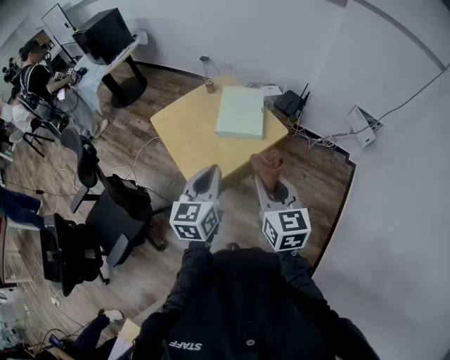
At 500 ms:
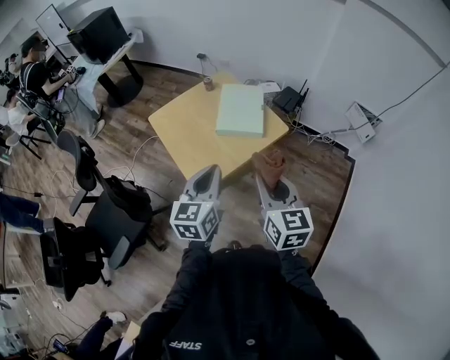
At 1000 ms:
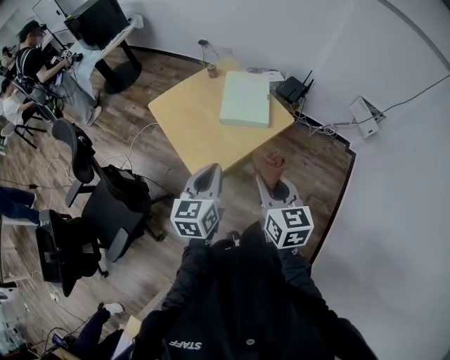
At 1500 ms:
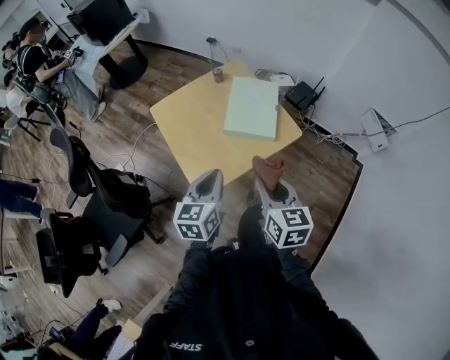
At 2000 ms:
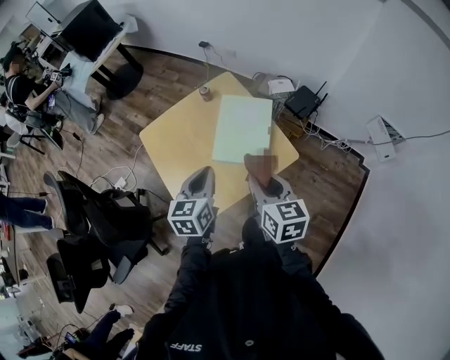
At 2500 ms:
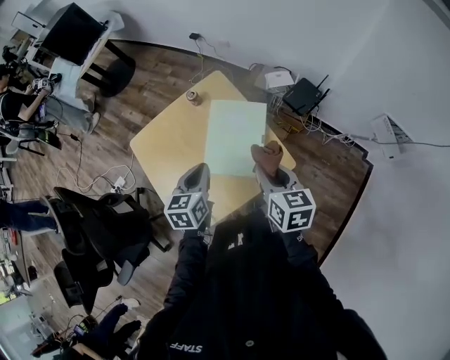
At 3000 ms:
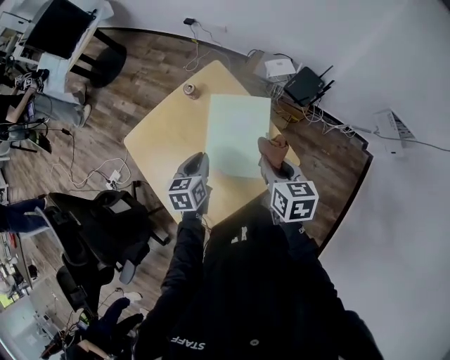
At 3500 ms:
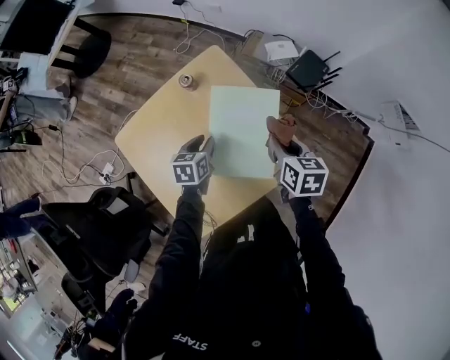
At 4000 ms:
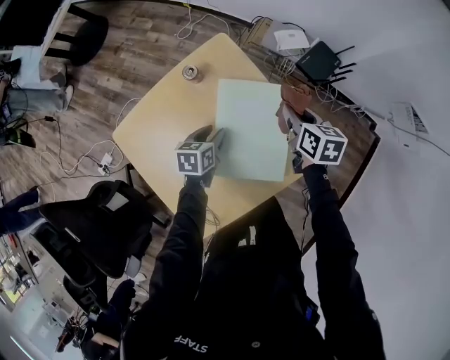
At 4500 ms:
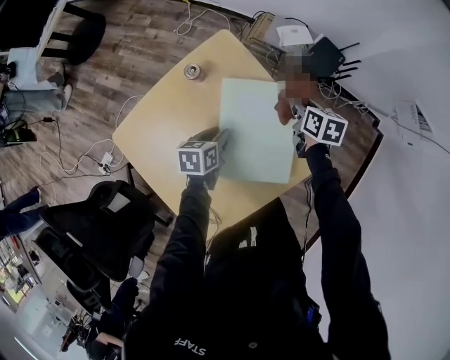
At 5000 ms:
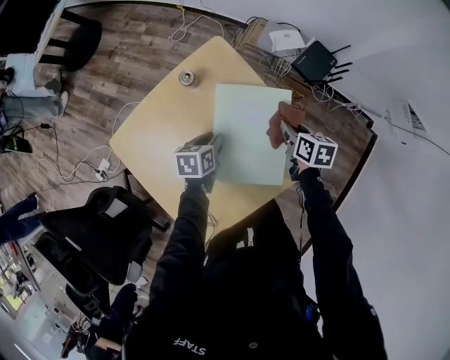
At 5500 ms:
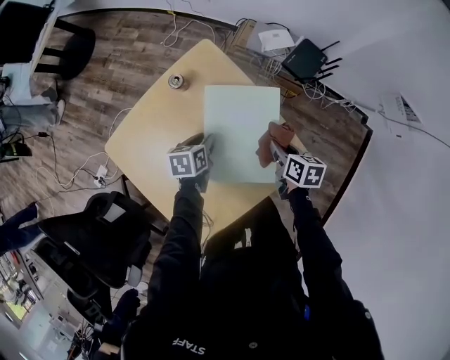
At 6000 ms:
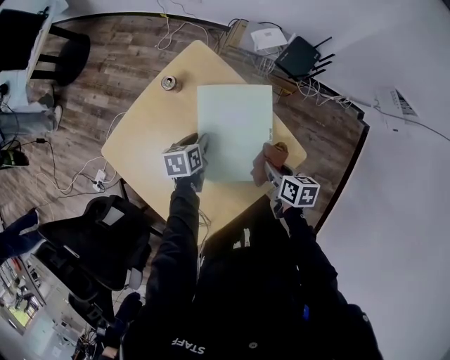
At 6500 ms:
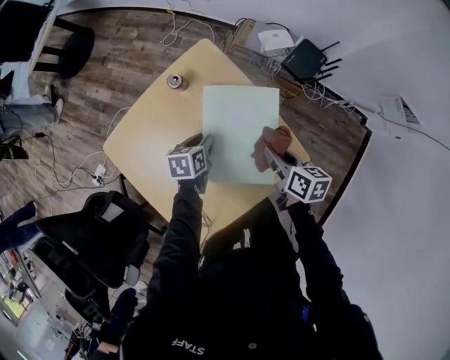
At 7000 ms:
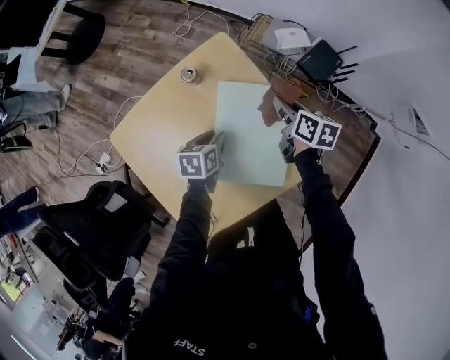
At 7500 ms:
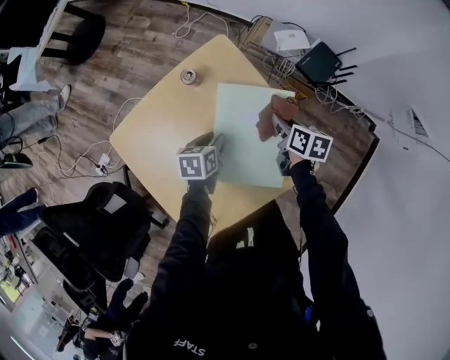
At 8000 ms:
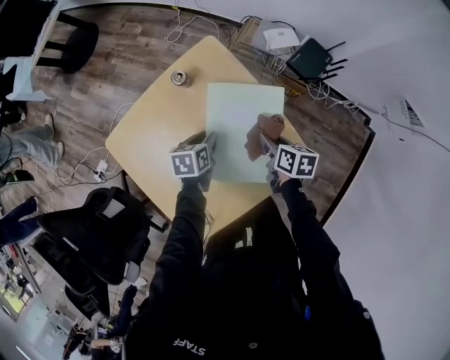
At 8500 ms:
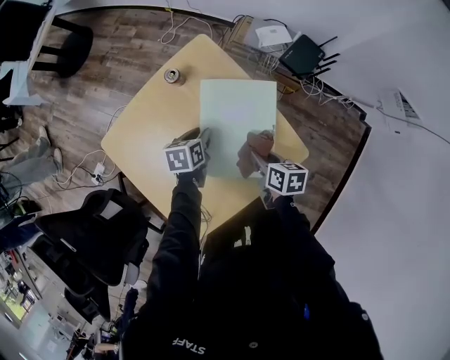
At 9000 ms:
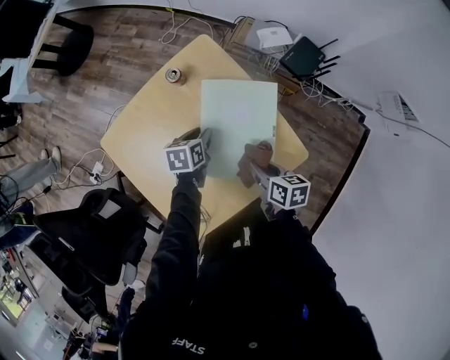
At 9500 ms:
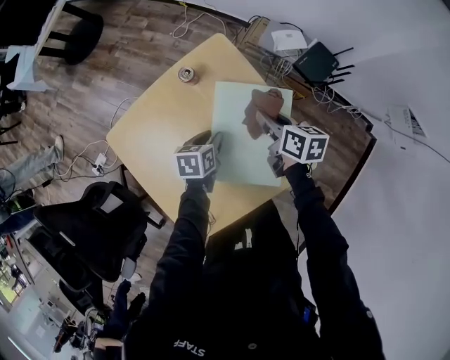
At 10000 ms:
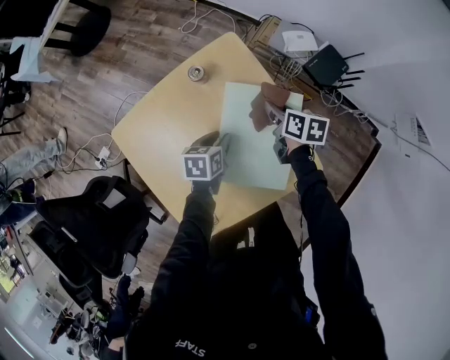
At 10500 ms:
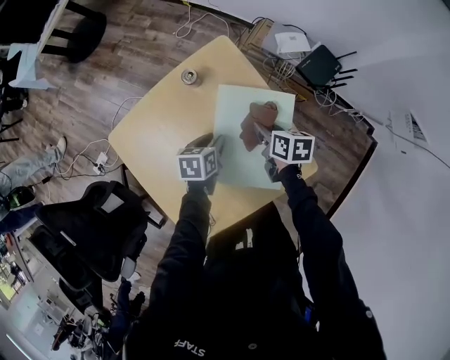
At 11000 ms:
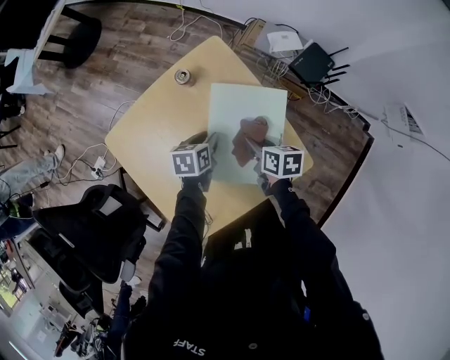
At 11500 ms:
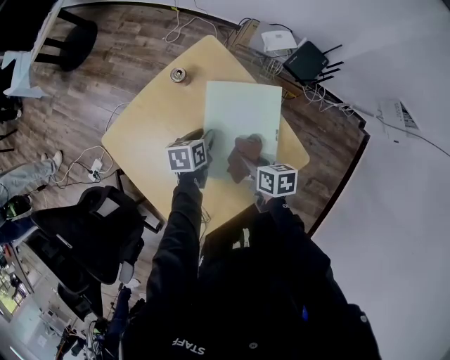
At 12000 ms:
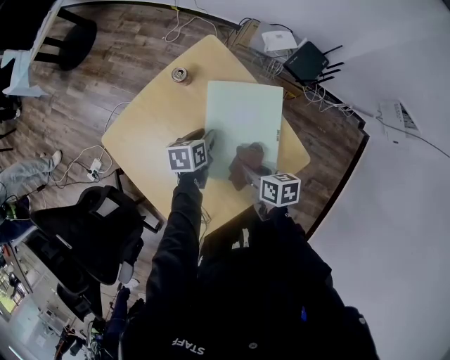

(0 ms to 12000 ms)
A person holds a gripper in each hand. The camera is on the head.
0 ms - 2000 ms: The right gripper goes approximately 25 cm forward; the left gripper heads forward and downward, covering some 30 cm.
2000 ms - 4000 ms: The right gripper goes about 40 cm forward and downward, and turns by roughly 20 degrees. The left gripper moves downward and forward, some 40 cm, turns by approximately 30 degrees, and opens its fingers.
4000 ms - 6000 ms: The right gripper moves backward and downward, roughly 20 cm.
6000 ms - 8000 ms: The right gripper shifts roughly 10 cm forward.
8000 ms - 10000 ms: The right gripper is displaced forward by roughly 10 cm.
10000 ms - 12000 ms: The right gripper shifts about 20 cm backward.

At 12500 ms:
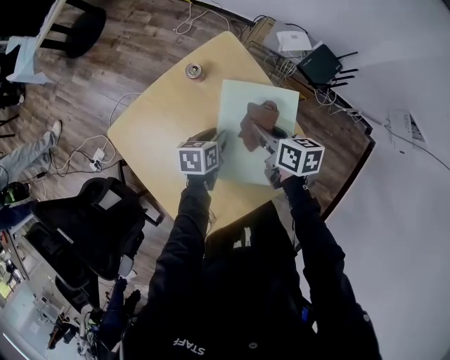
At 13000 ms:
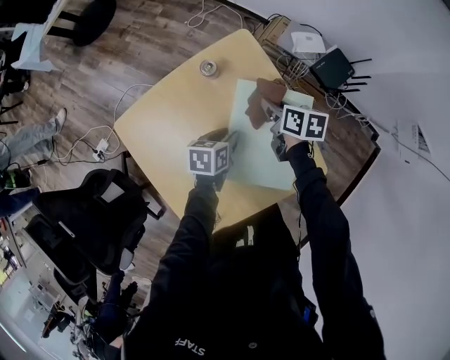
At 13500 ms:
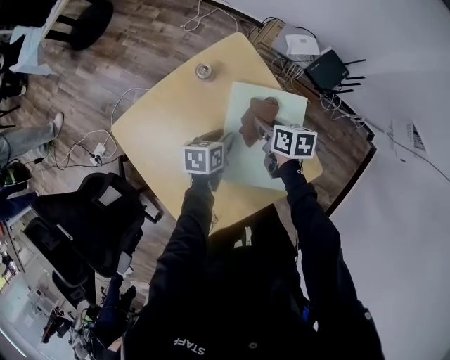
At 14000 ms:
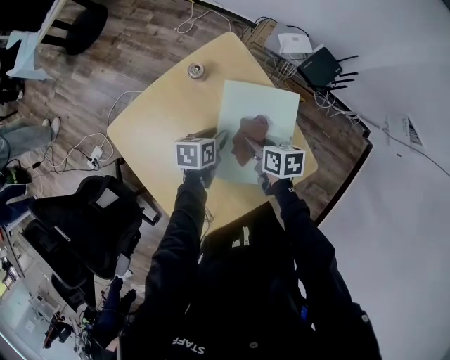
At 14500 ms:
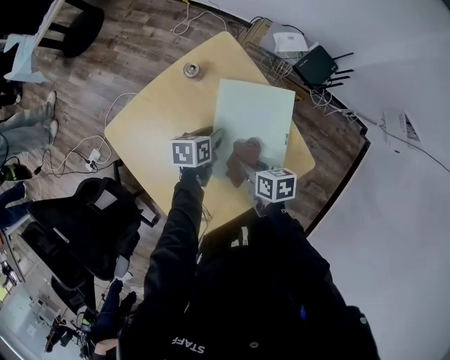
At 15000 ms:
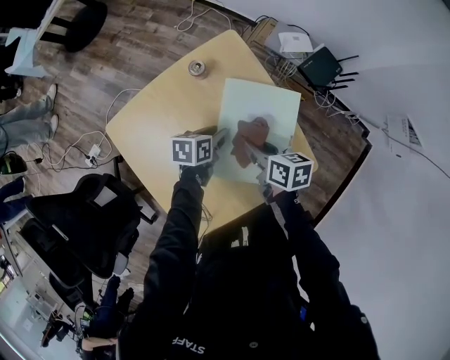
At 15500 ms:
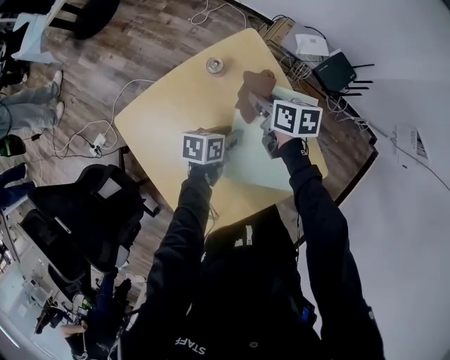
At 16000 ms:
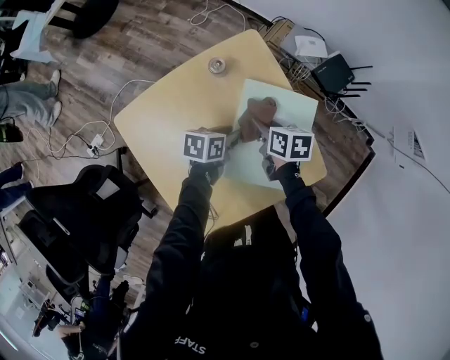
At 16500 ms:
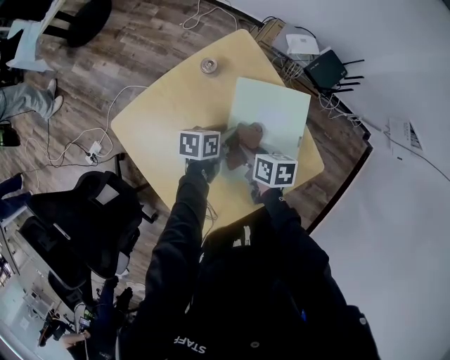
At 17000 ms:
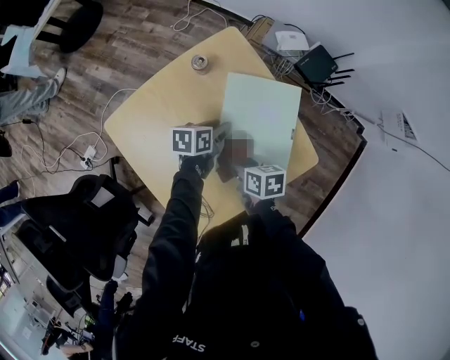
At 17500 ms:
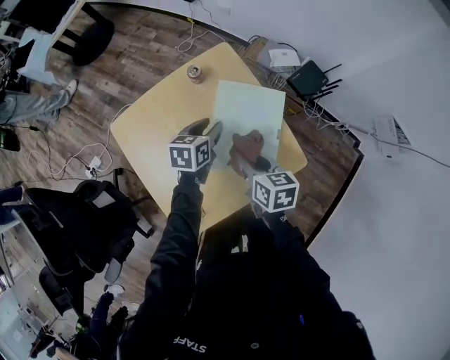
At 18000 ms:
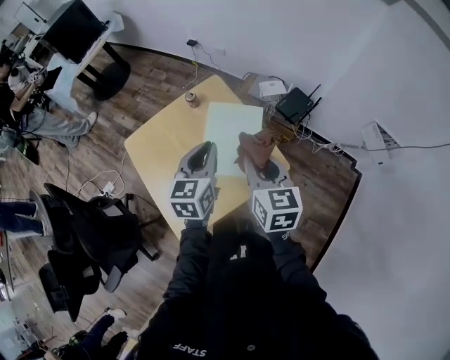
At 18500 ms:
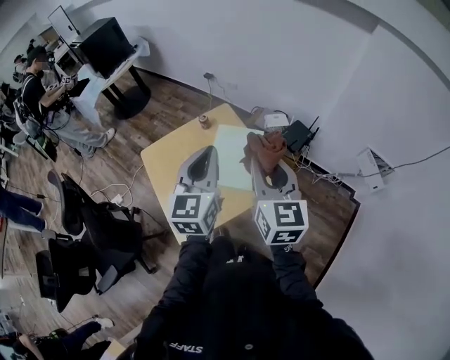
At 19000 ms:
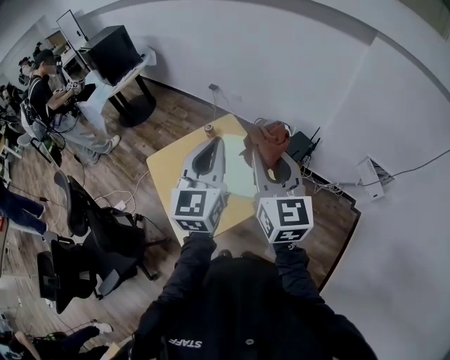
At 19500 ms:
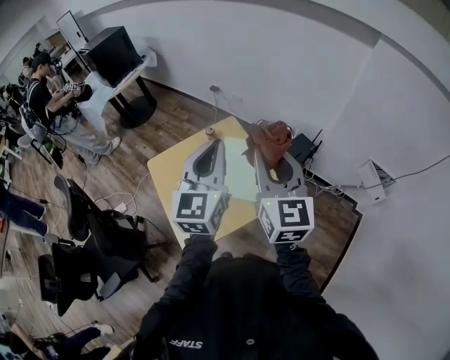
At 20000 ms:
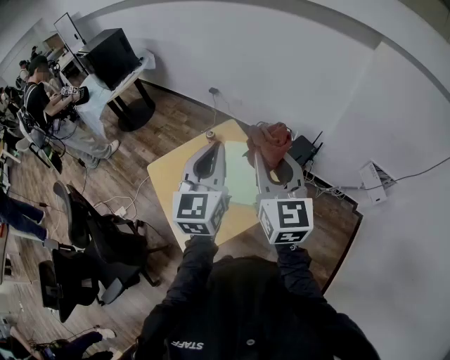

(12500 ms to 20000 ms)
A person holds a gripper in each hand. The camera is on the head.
12500 ms - 14500 ms: The right gripper is displaced backward and downward by some 15 cm.
14500 ms - 16500 ms: The right gripper travels to the left by some 5 cm, and travels forward and back again, roughly 20 cm each way.
16500 ms - 18000 ms: The right gripper heads upward and to the right, covering about 35 cm, and rotates approximately 50 degrees. Meanwhile the left gripper heads upward and backward, covering approximately 35 cm, rotates about 50 degrees, and closes.
18000 ms - 20000 ms: Both grippers travel together upward, about 20 cm. The left gripper turns by some 30 degrees. The right gripper rotates some 30 degrees.

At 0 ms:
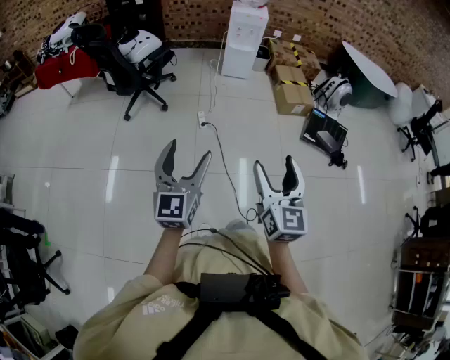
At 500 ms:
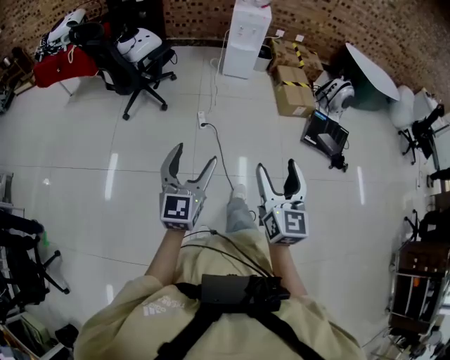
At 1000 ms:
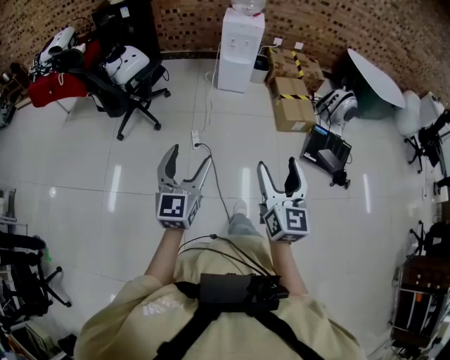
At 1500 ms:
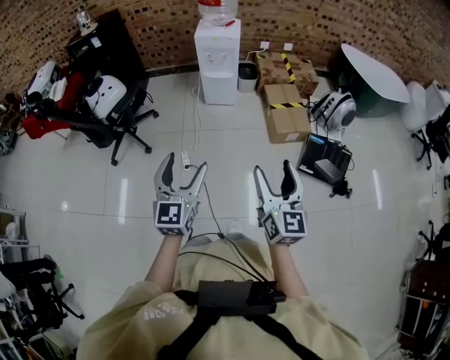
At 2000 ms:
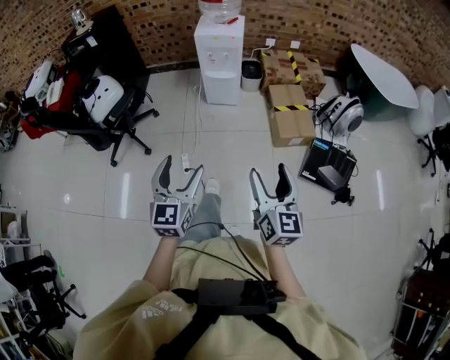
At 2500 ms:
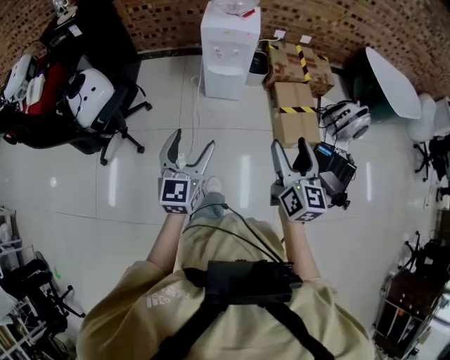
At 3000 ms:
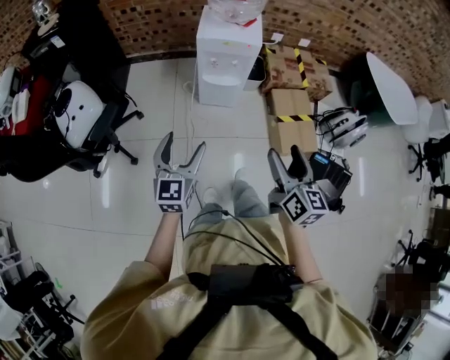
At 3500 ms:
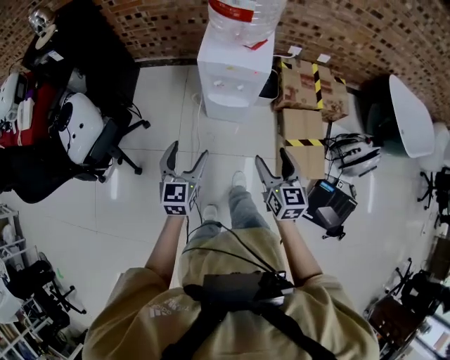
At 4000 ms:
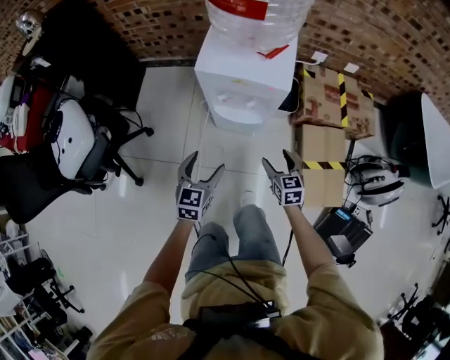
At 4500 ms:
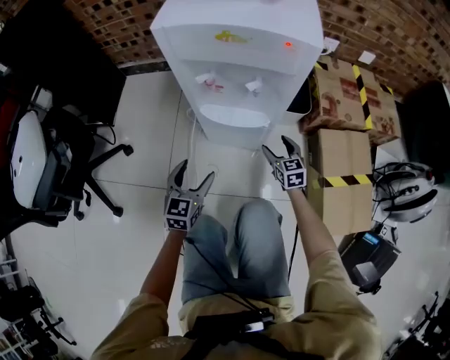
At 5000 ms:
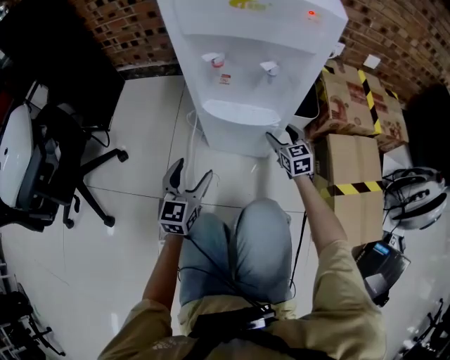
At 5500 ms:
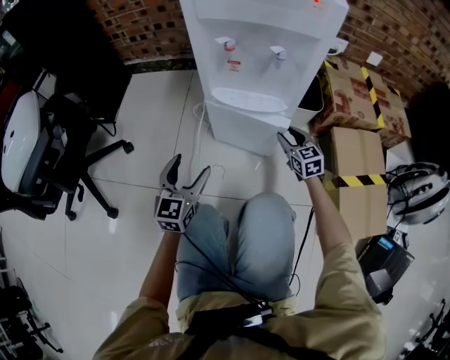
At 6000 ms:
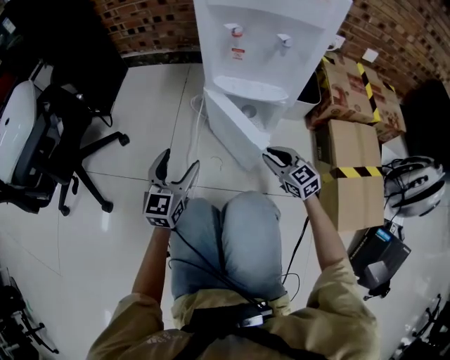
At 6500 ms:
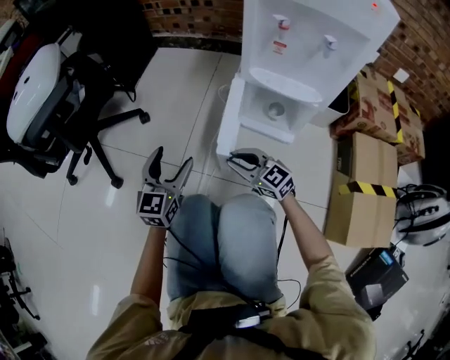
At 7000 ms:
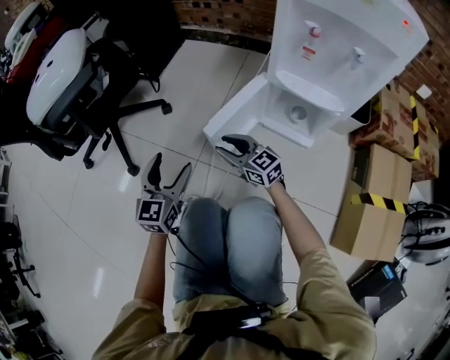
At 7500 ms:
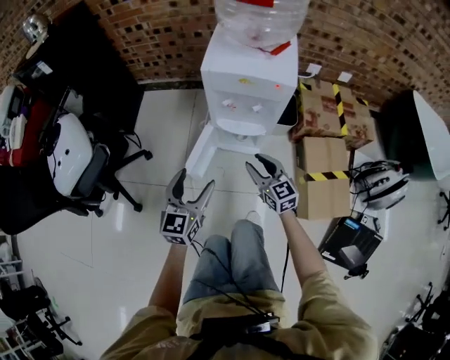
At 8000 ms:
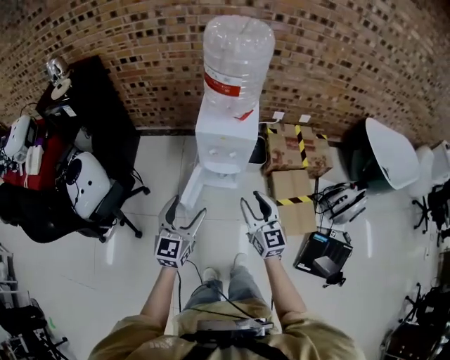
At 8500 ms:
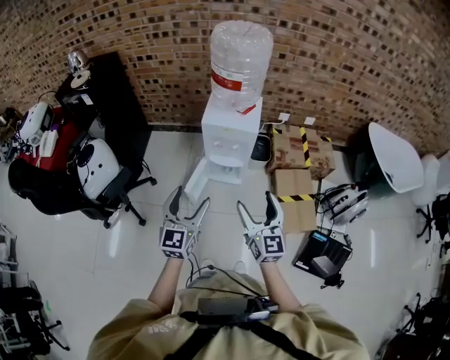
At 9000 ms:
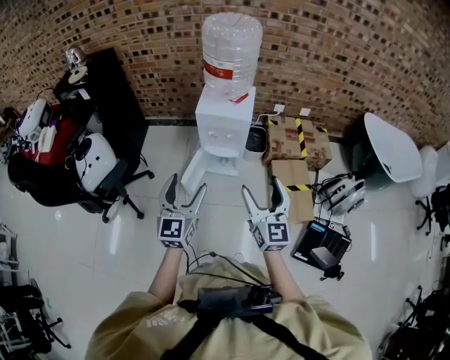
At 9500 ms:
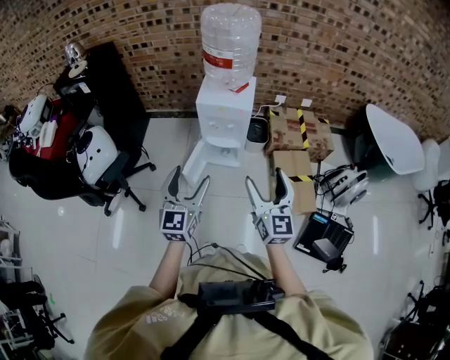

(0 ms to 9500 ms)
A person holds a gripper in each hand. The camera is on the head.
0 ms - 2000 ms: The two grippers travel together, forward and to the right, approximately 50 cm.
2000 ms - 4000 ms: The two grippers travel together, forward, about 60 cm. Both grippers travel together downward, some 35 cm. The right gripper points its fingers about 30 degrees further downward.
4000 ms - 5500 ms: The left gripper heads downward, covering roughly 30 cm; the right gripper travels downward and forward by about 35 cm, and closes.
5500 ms - 7500 ms: The grippers both shift upward by roughly 30 cm.
7500 ms - 9500 ms: Both grippers travel together upward and backward, roughly 40 cm. The right gripper rotates about 30 degrees, and opens up.
